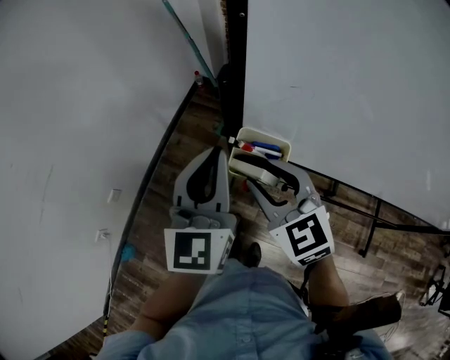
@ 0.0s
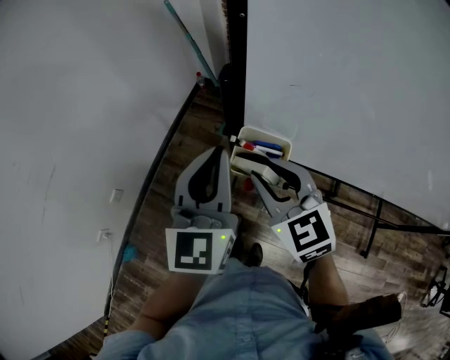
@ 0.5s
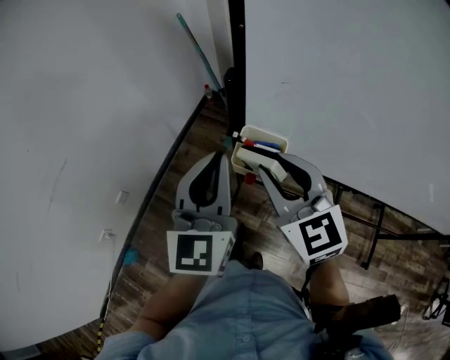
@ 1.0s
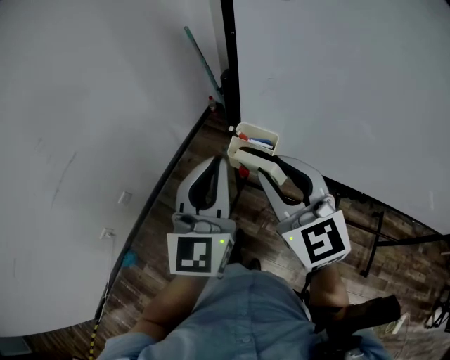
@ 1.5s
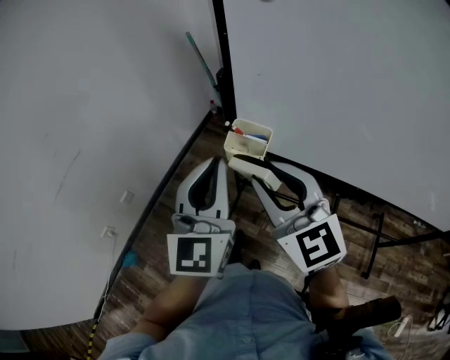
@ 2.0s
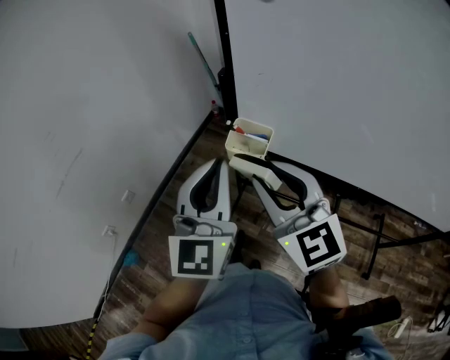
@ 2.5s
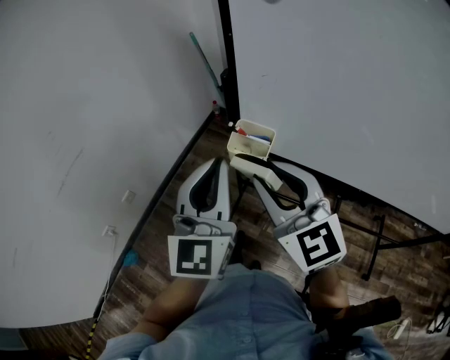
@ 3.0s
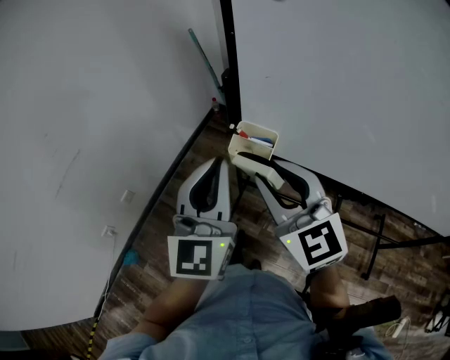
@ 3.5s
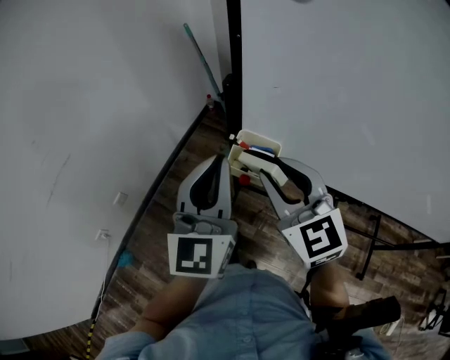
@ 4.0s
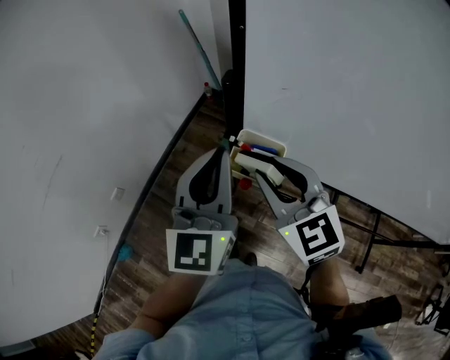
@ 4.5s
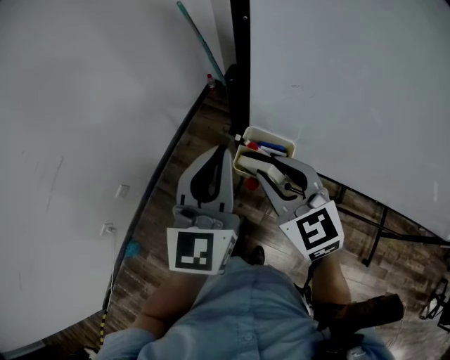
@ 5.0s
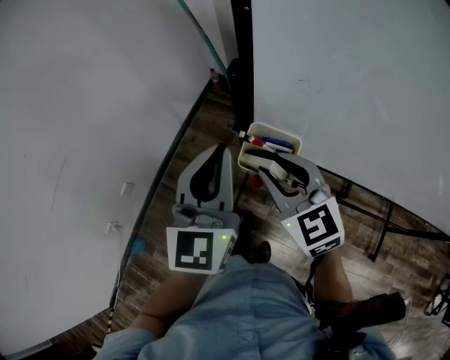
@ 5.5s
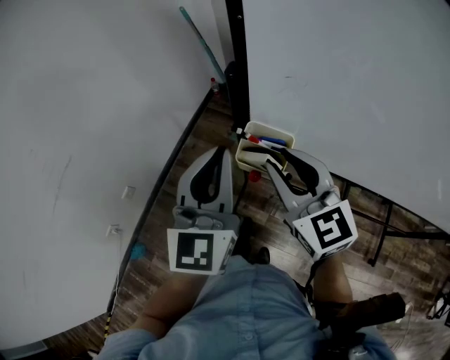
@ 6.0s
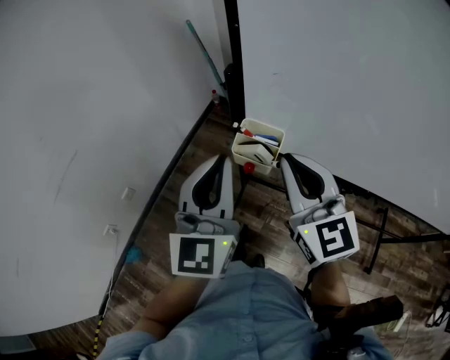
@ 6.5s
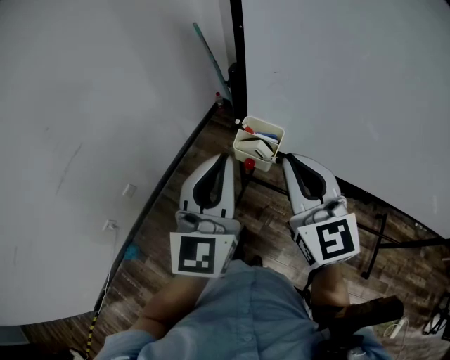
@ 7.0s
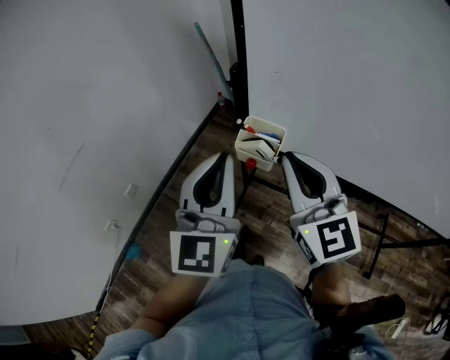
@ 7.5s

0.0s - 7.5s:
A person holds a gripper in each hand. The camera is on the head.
0.0s - 2.0s: Both grippers move backward and upward, roughly 15 cm.
2.0s - 4.0s: Both grippers move forward, approximately 10 cm.
4.0s - 5.5s: The left gripper travels forward by approximately 5 cm, while the right gripper heads downward and forward, covering approximately 10 cm.
5.5s - 7.5s: The right gripper heads upward and backward, covering approximately 15 cm, swivels some 20 degrees, and closes up; the left gripper goes some 15 cm backward and upward.

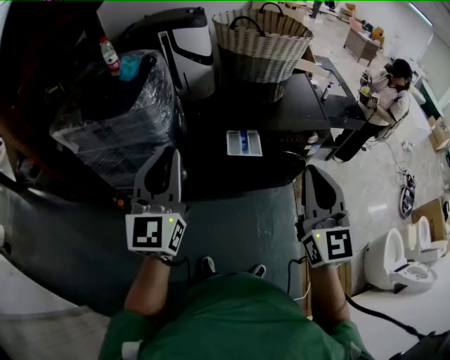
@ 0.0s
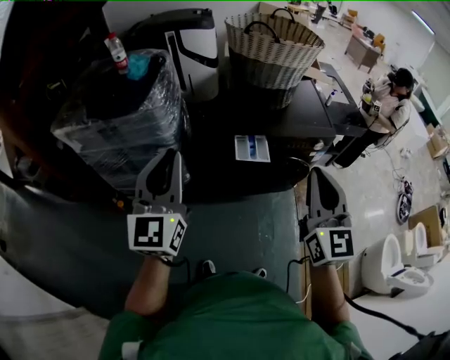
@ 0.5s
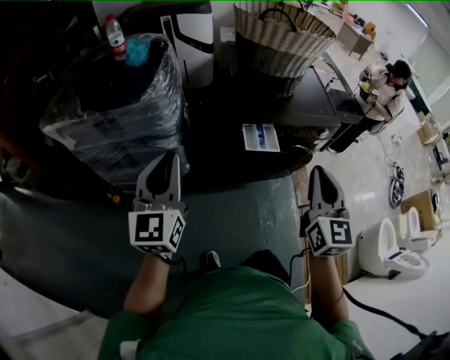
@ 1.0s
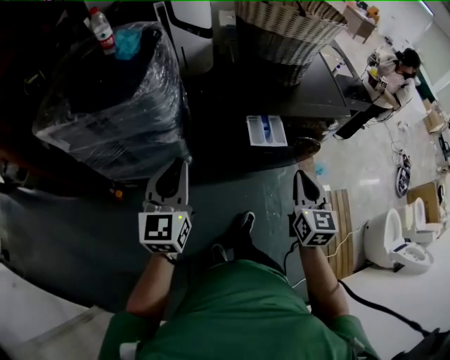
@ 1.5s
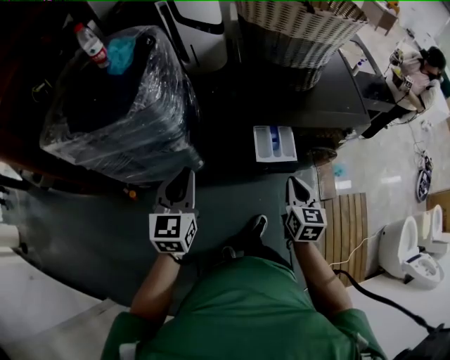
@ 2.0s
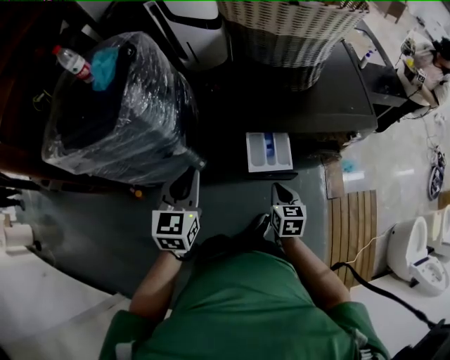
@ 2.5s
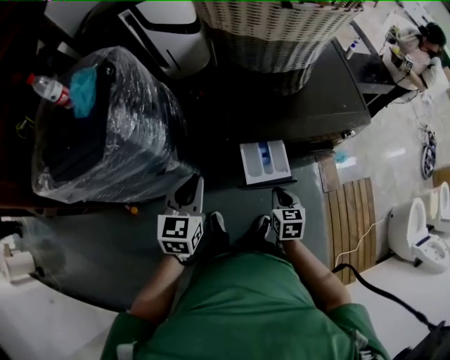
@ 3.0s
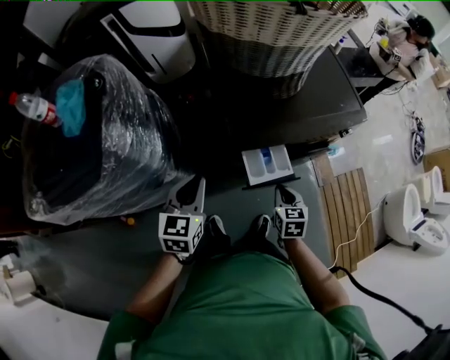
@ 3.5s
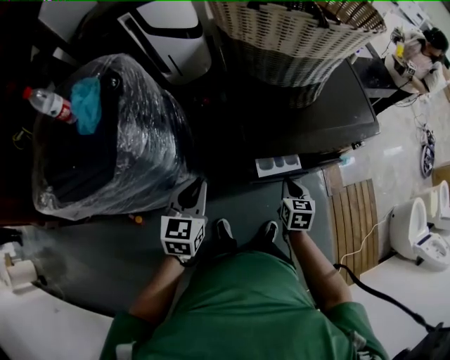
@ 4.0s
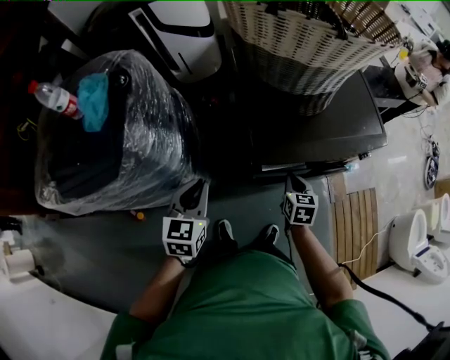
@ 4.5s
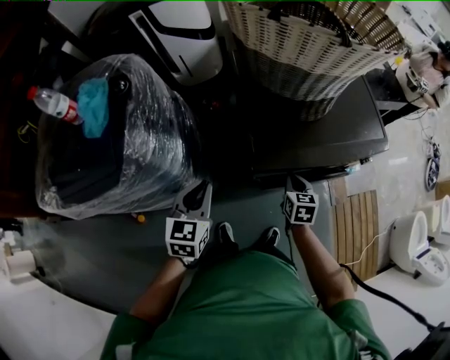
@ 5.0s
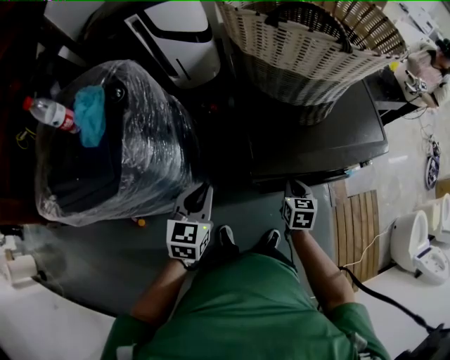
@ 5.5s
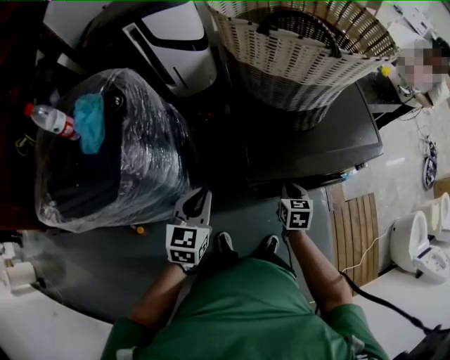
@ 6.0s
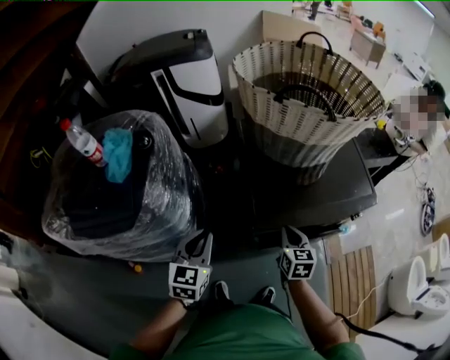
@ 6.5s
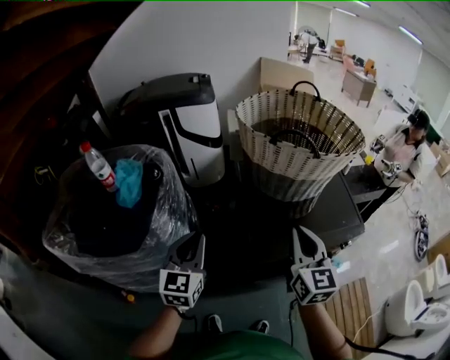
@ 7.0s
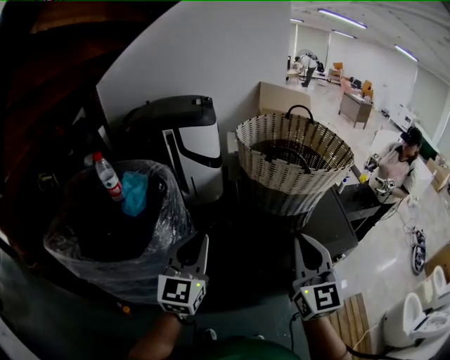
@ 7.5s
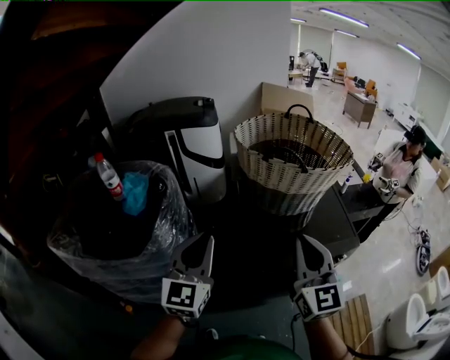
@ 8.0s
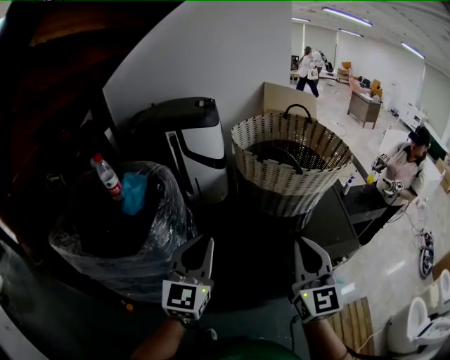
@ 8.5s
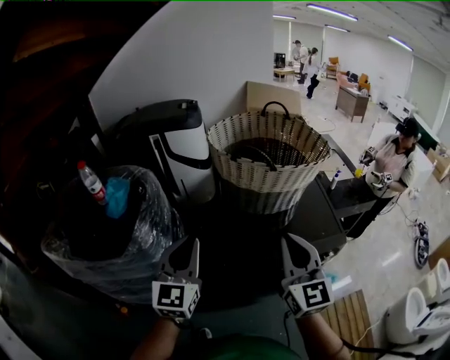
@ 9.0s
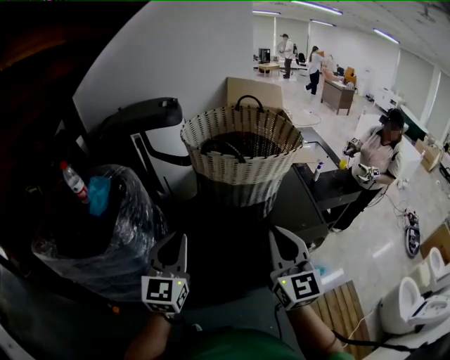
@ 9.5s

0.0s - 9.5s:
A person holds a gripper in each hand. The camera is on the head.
0.0s - 2.0s: The two grippers go some 30 cm downward and forward. The right gripper points its fingers approximately 30 degrees further downward, while the left gripper turns by roughly 30 degrees.
2.0s - 4.0s: The two grippers go approximately 20 cm forward and downward.
4.0s - 5.5s: The right gripper is displaced forward by about 5 cm.
5.5s - 7.5s: The right gripper heads upward, covering approximately 40 cm, and tilts its fingers roughly 50 degrees upward; the left gripper shifts about 25 cm upward, and tips its fingers upward by some 30 degrees.
7.5s - 9.5s: Both grippers move to the right, approximately 15 cm.

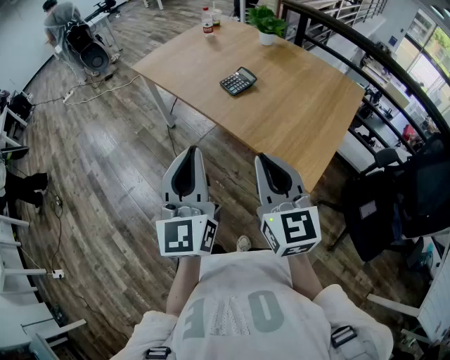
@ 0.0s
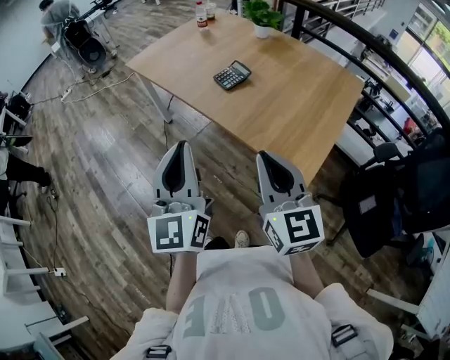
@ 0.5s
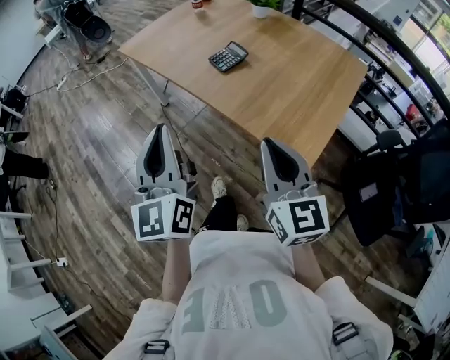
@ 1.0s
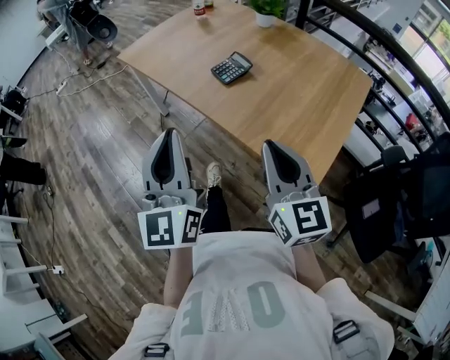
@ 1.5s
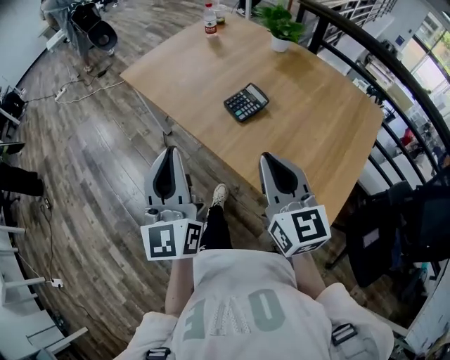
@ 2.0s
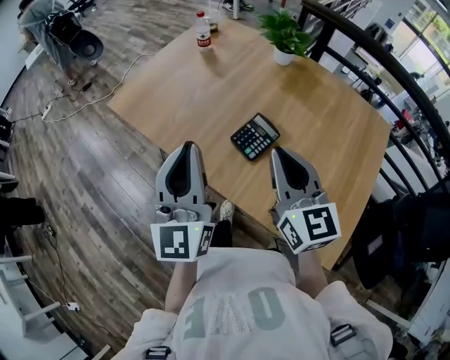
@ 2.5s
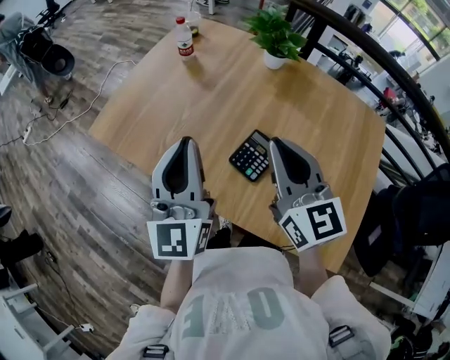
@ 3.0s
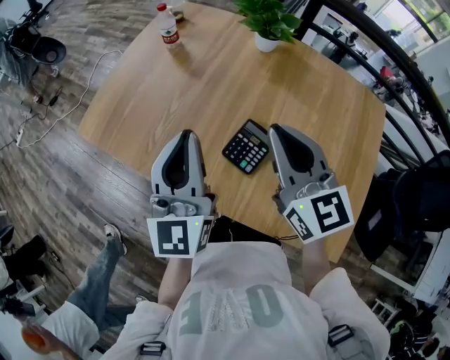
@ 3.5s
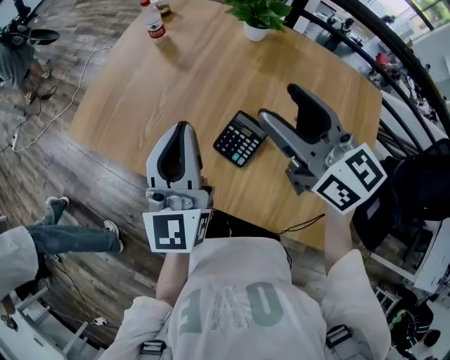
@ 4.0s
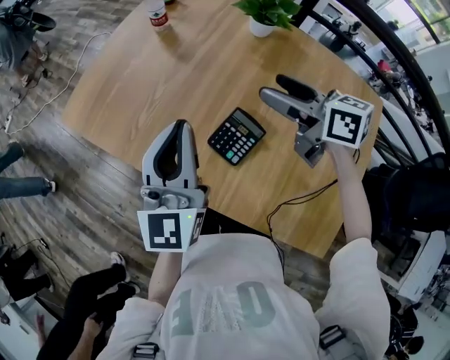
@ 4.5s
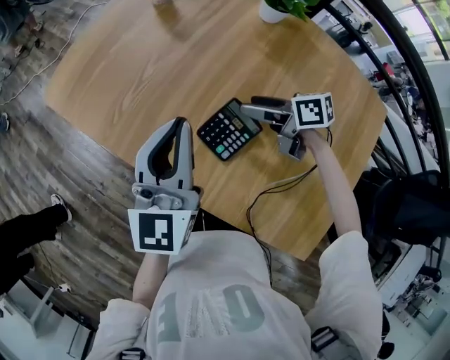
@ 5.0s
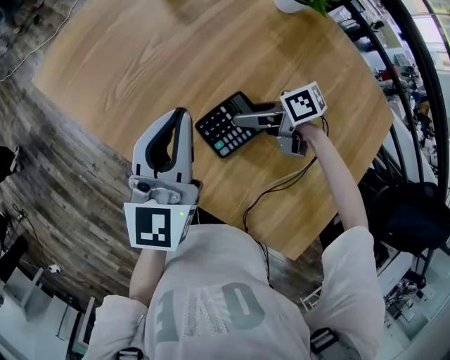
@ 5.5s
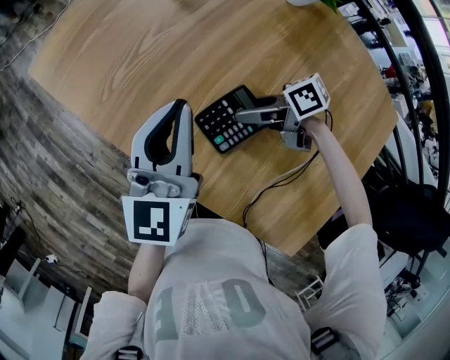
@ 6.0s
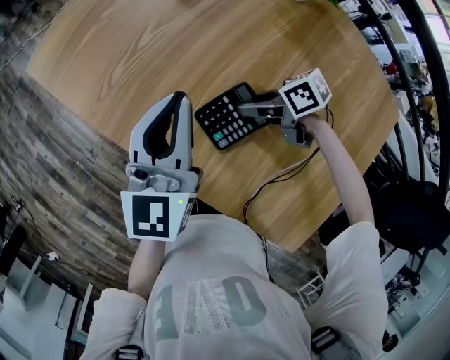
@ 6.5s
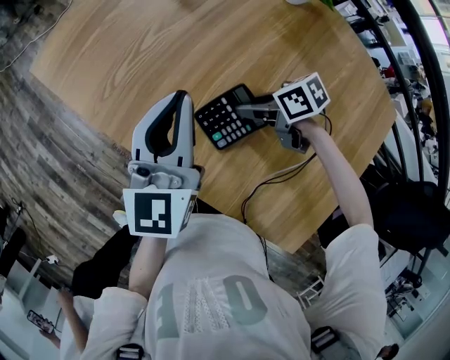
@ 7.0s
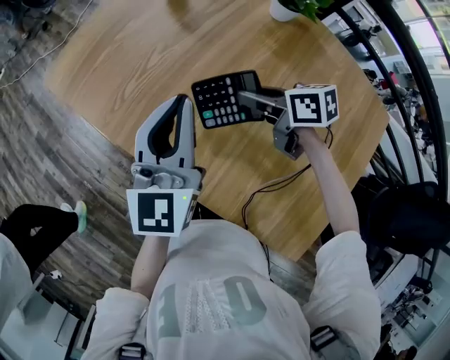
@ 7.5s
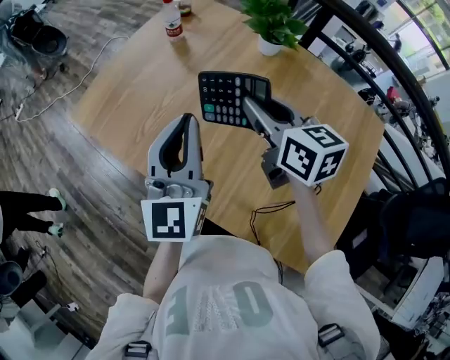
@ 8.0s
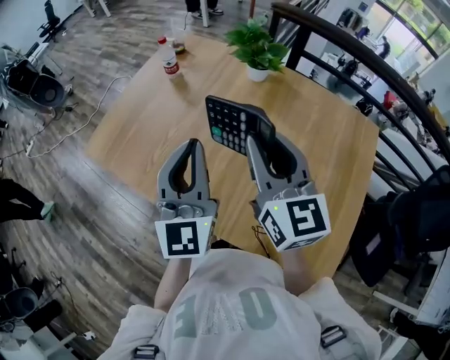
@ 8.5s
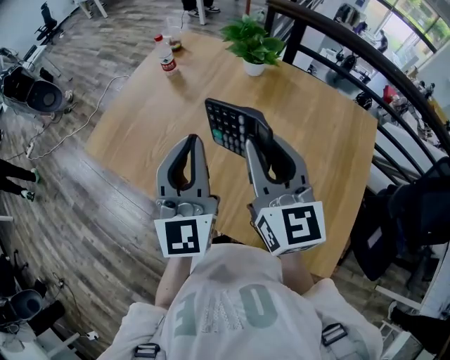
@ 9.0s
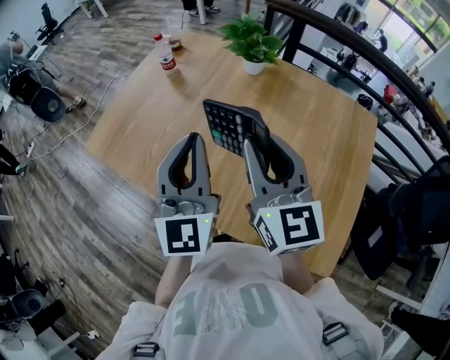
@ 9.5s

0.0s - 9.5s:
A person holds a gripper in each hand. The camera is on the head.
0.0s - 2.0s: Both grippers travel together forward, about 20 cm.
2.0s - 4.0s: Both grippers move forward, some 30 cm. The left gripper swivels some 20 degrees. The right gripper opens.
4.0s - 5.5s: The right gripper travels downward by roughly 30 cm, and turns by roughly 80 degrees. Meanwhile the left gripper moves downward, some 10 cm.
5.5s - 7.5s: The right gripper shifts approximately 10 cm upward, turns by roughly 30 degrees, and closes its fingers.
7.5s - 9.5s: The left gripper heads upward, covering about 10 cm. Meanwhile the right gripper shifts about 25 cm upward, and points its fingers roughly 30 degrees further upward.
